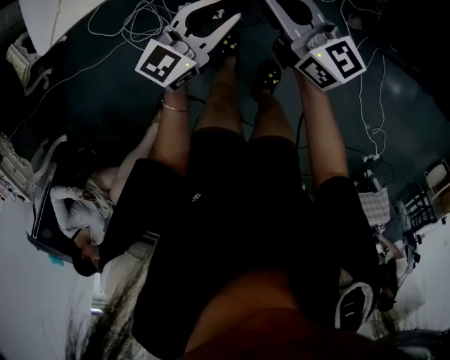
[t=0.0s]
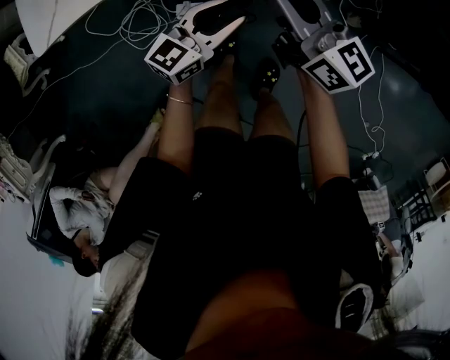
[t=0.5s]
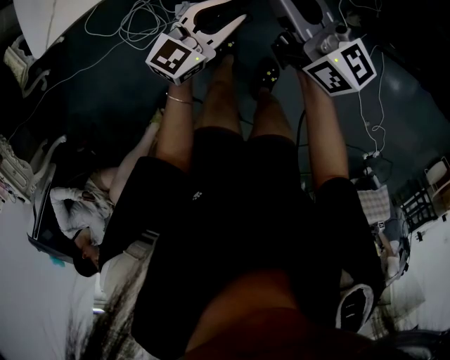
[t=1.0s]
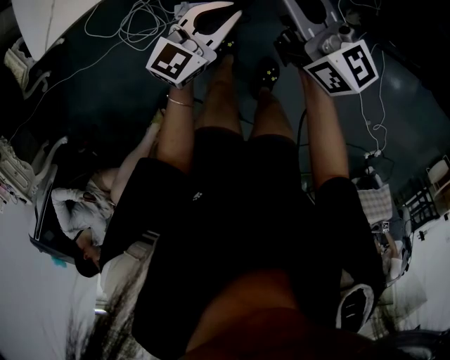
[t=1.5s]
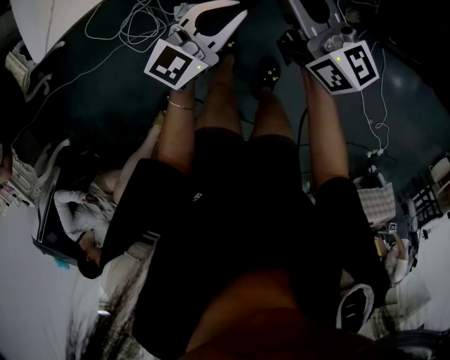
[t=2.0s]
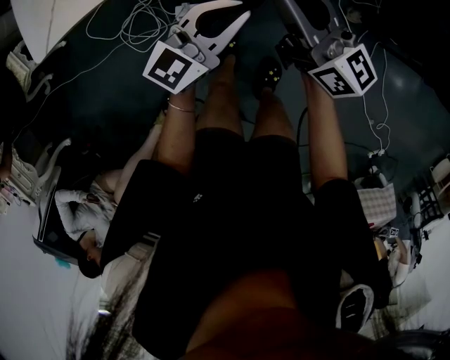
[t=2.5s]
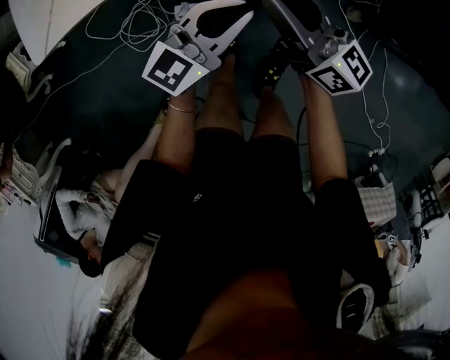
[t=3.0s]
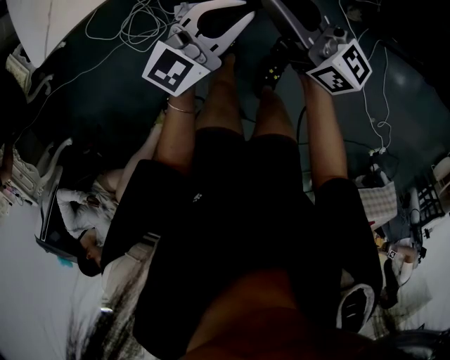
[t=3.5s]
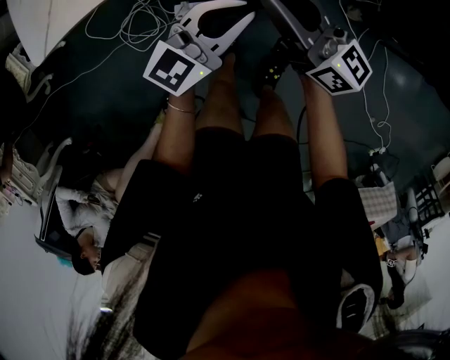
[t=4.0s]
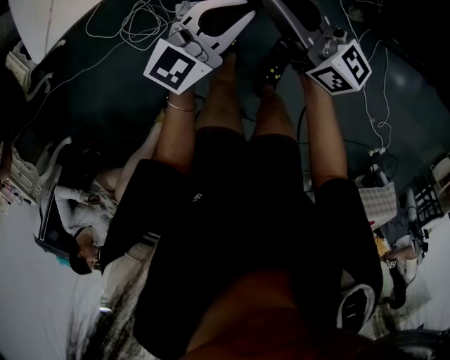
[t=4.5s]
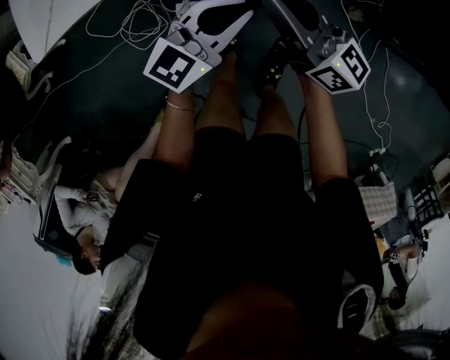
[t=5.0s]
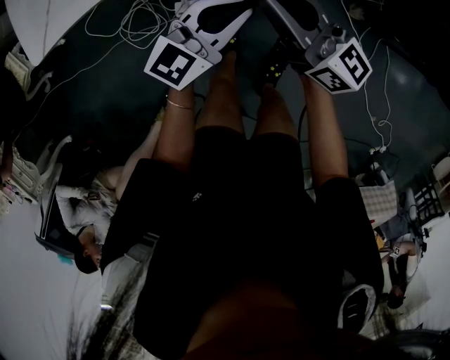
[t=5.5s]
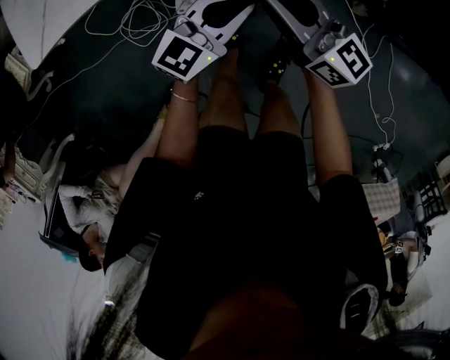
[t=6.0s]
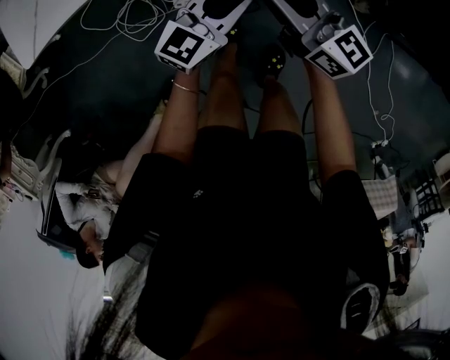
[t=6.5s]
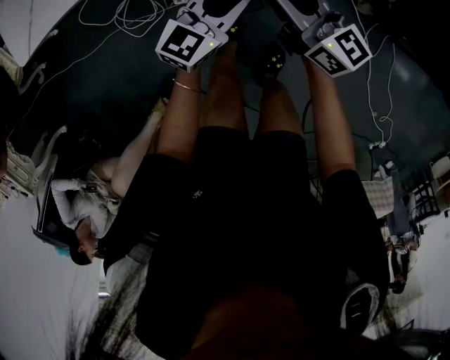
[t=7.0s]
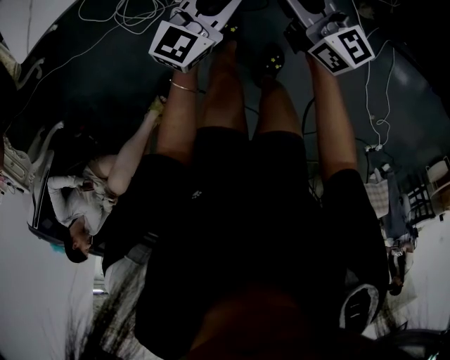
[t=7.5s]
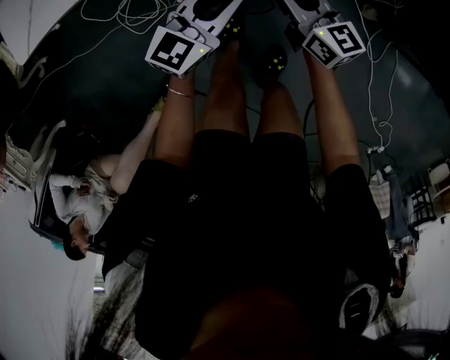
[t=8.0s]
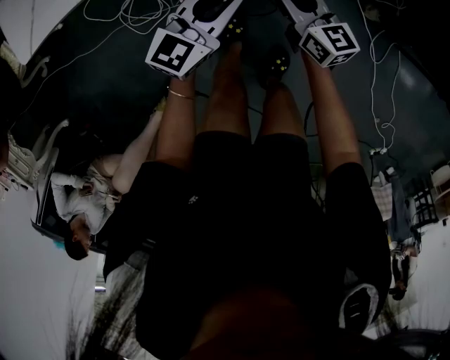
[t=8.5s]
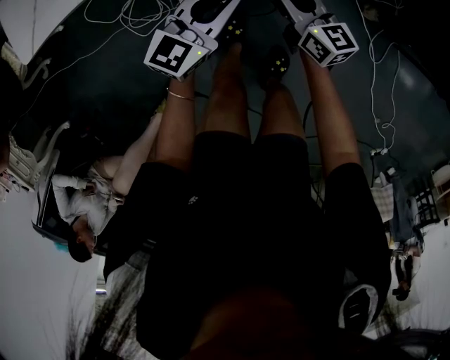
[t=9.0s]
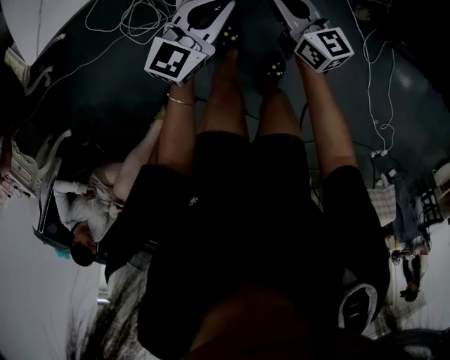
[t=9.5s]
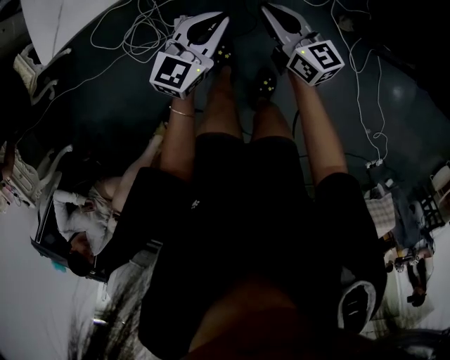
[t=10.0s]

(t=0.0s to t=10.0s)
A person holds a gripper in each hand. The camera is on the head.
t=0.0s - t=2.0s: The grippers move only a little.
t=2.0s - t=4.0s: The right gripper opens.
t=4.0s - t=6.0s: The grippers stay close to where they were, moving slightly.
t=6.0s - t=8.0s: The left gripper changes place by about 5 cm; the right gripper travels downward by roughly 10 cm.
t=8.0s - t=10.0s: The left gripper ends up some 5 cm from where it was, while the right gripper moves upward, roughly 5 cm.

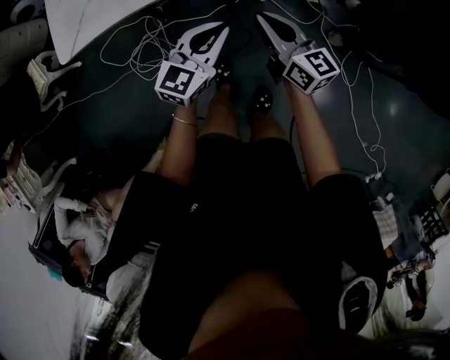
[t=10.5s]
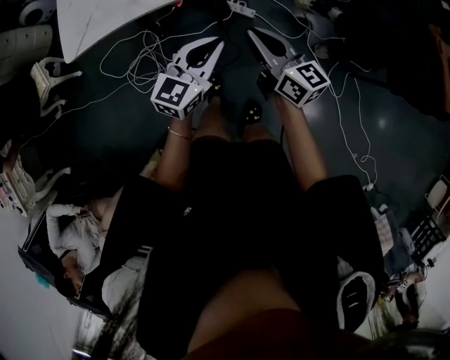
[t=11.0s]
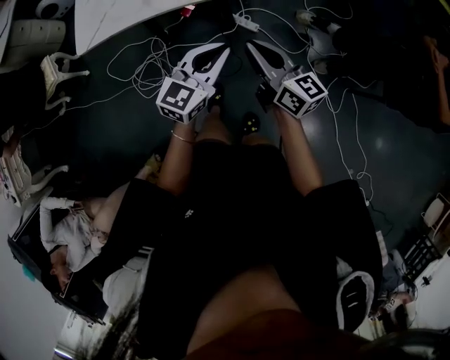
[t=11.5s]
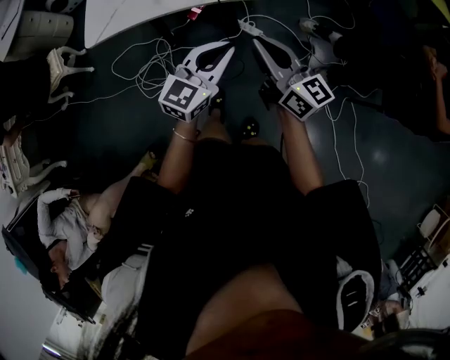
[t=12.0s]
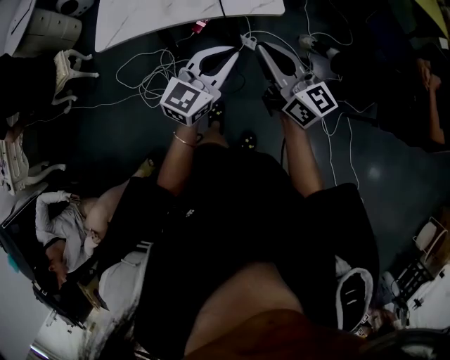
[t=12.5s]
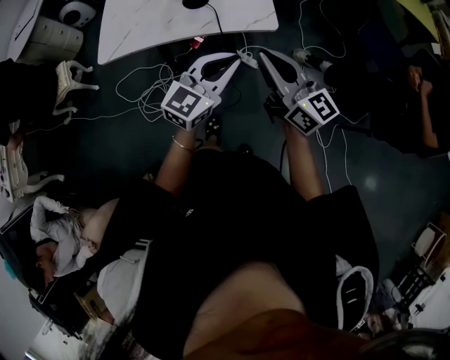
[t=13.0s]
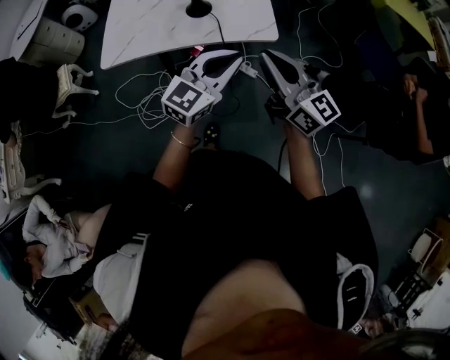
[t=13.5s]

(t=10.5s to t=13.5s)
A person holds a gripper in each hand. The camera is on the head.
t=10.5s - t=12.0s: The two grippers go roughly 15 cm upward and backward.
t=12.0s - t=13.5s: The grippers both shift upward by approximately 10 cm.

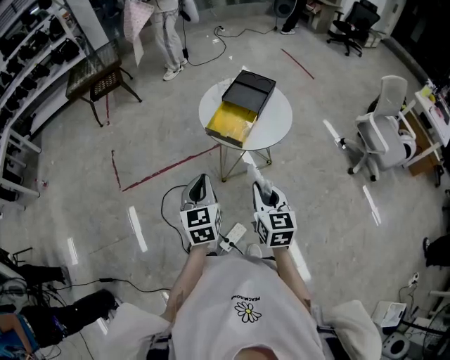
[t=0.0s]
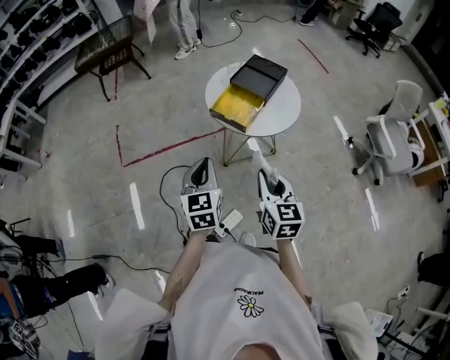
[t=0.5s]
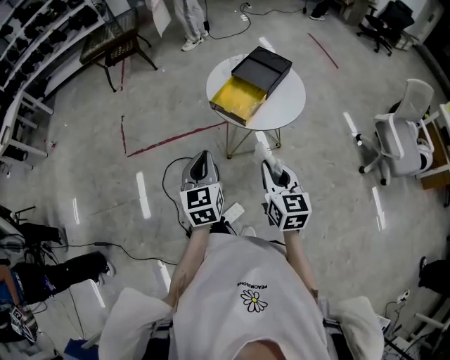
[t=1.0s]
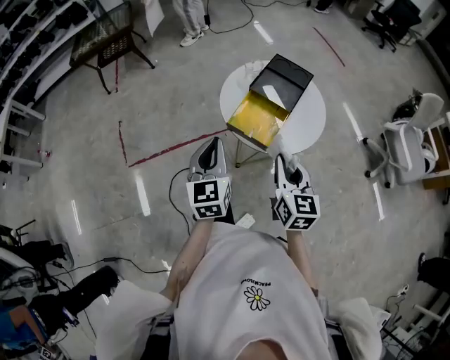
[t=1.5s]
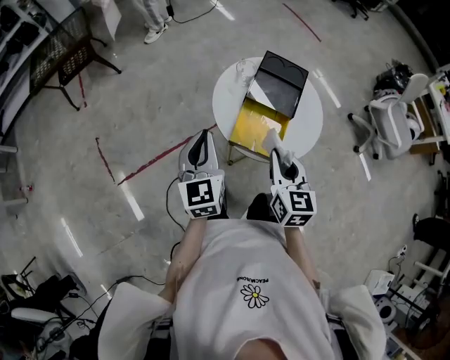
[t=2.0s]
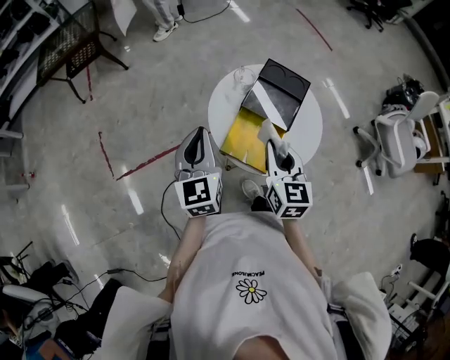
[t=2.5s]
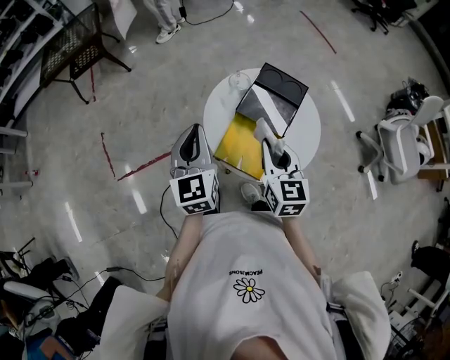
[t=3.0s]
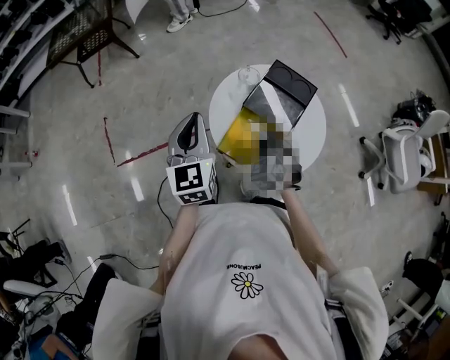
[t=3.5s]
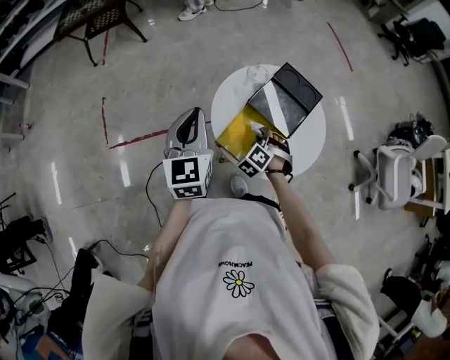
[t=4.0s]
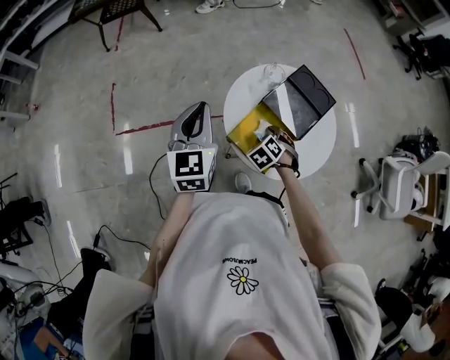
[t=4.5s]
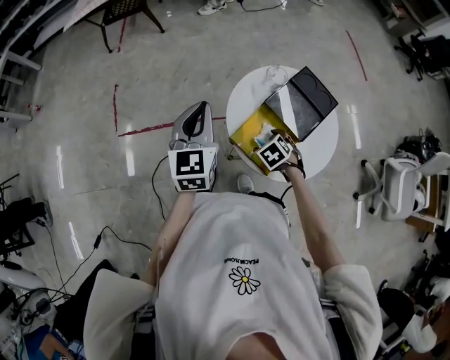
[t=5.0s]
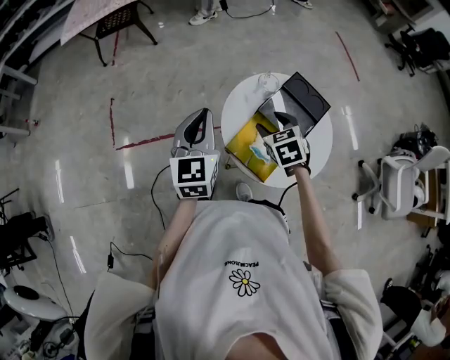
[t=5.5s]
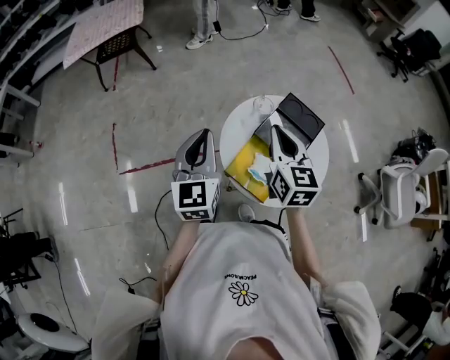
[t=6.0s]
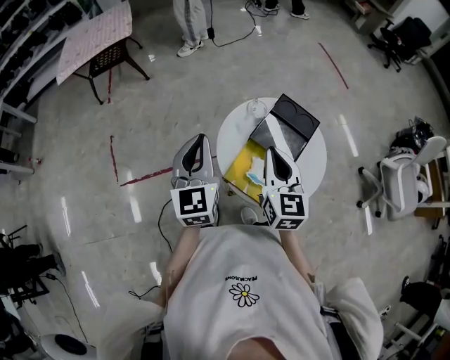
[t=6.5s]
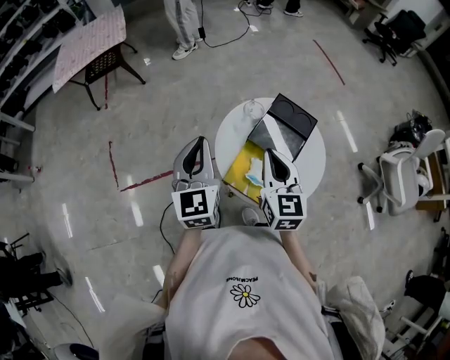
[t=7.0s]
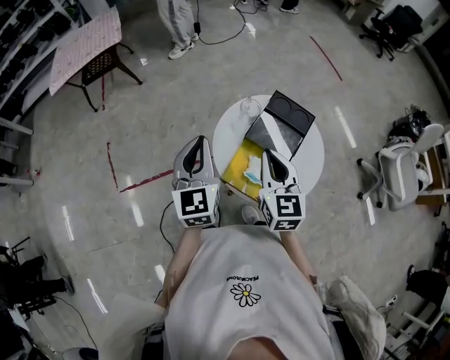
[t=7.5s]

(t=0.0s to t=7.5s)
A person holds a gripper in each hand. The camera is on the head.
t=0.0s - t=2.0s: Both grippers move forward, some 30 cm.
t=2.0s - t=4.0s: The right gripper moves downward and forward, some 25 cm, and rotates around the line of its fingers by roughly 70 degrees, counterclockwise from behind, while the left gripper ends up approximately 5 cm from where it was.
t=4.0s - t=5.5s: The right gripper shifts some 15 cm upward, rotates some 40 degrees, and opens its fingers.
t=5.5s - t=7.5s: The right gripper moves upward, some 10 cm, tilts its fingers roughly 30 degrees upward, and closes its fingers.

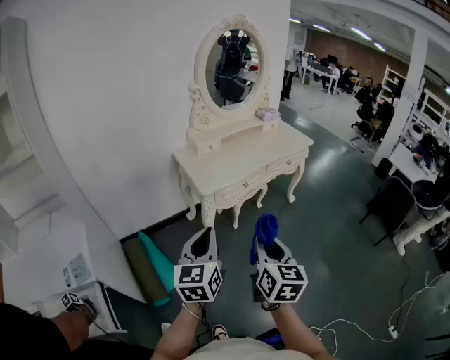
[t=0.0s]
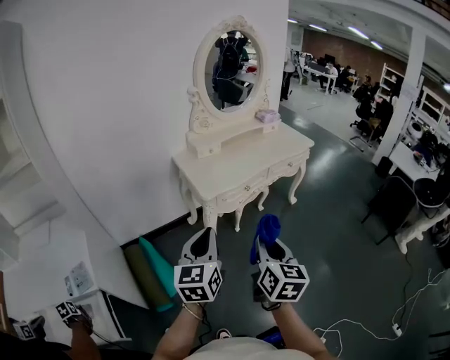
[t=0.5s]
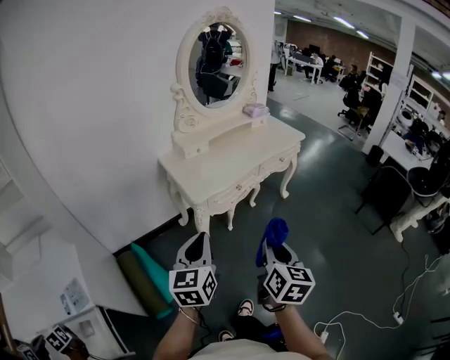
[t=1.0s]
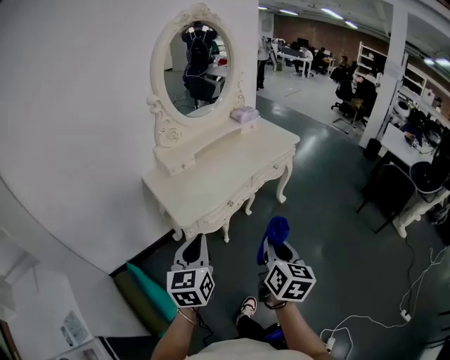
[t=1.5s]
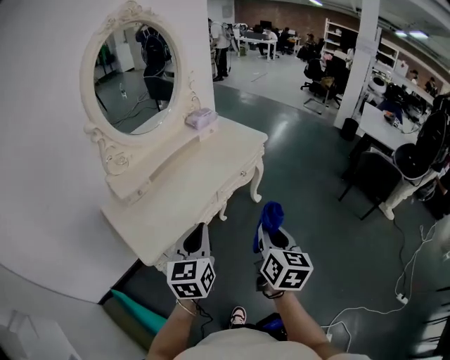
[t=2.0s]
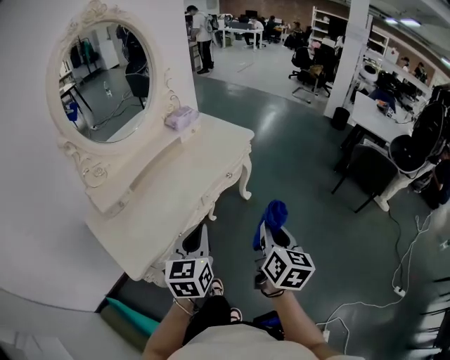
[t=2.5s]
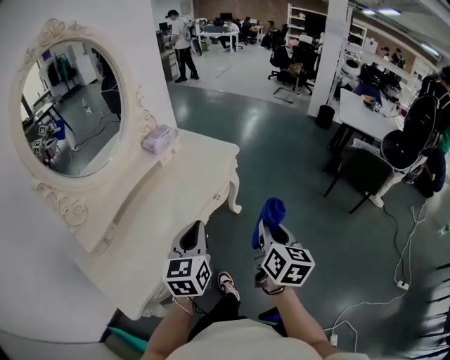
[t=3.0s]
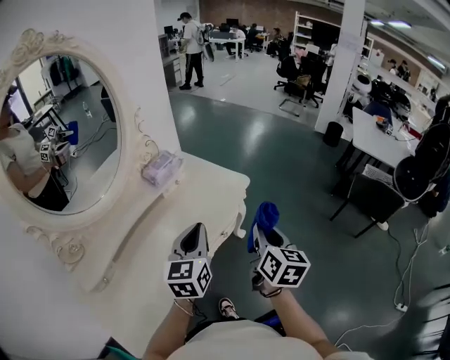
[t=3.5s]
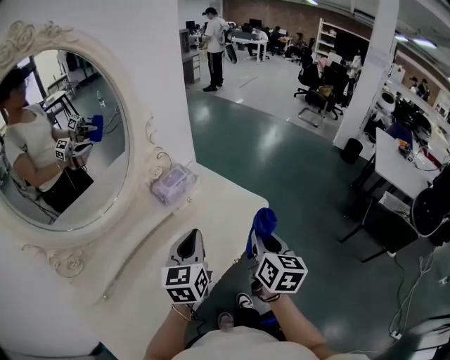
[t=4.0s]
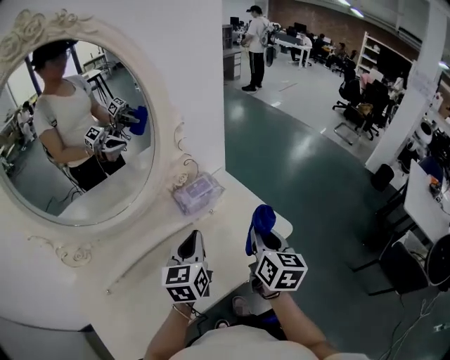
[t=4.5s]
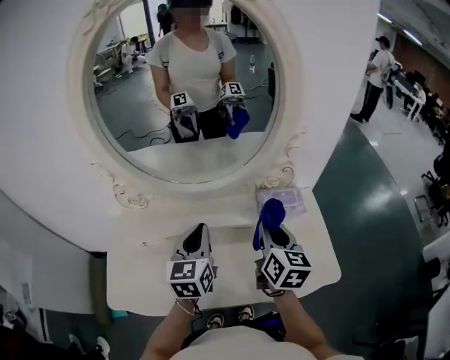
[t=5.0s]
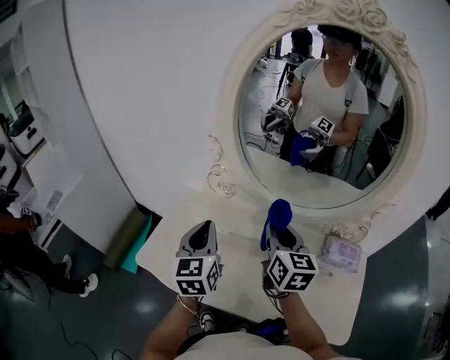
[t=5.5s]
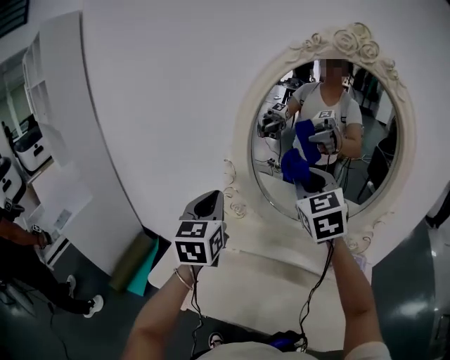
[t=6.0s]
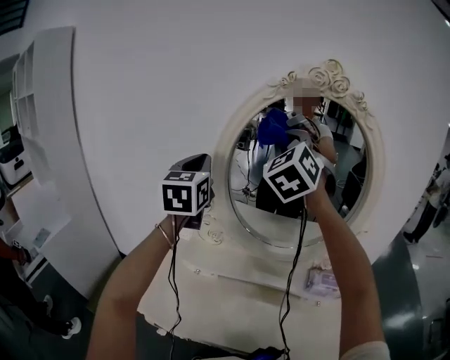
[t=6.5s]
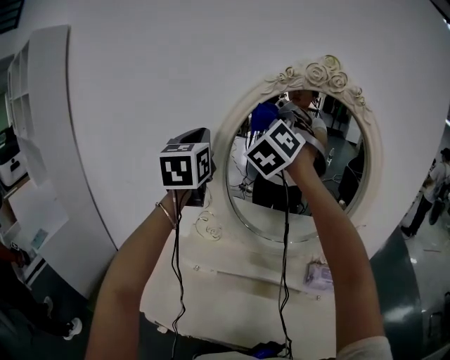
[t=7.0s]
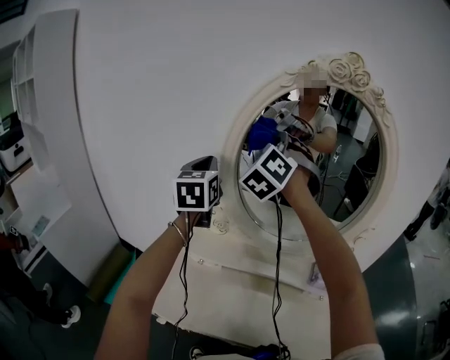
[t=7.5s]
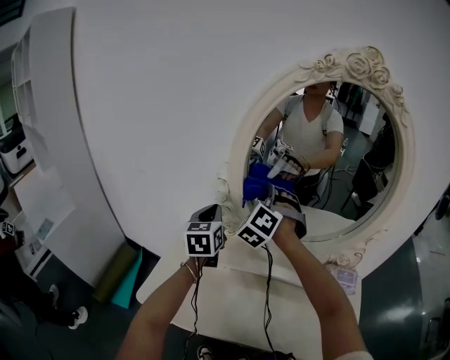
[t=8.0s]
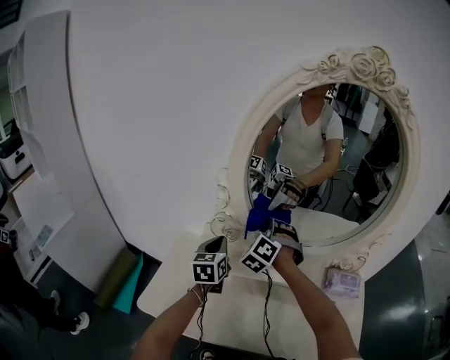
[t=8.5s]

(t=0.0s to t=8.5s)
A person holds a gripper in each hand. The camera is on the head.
t=0.0s - t=2.0s: Both grippers move forward and to the right, some 35 cm. The right gripper rotates approximately 20 degrees.
t=2.0s - t=4.0s: Both grippers are carried forward, about 50 cm.
t=4.0s - t=6.5s: The pair of grippers is taken roughly 50 cm. The left gripper changes its angle by roughly 70 degrees; the right gripper changes its angle by approximately 100 degrees.
t=6.5s - t=8.5s: The two grippers go about 35 cm downward. The left gripper turns by about 30 degrees. Meanwhile the right gripper rotates some 30 degrees.
